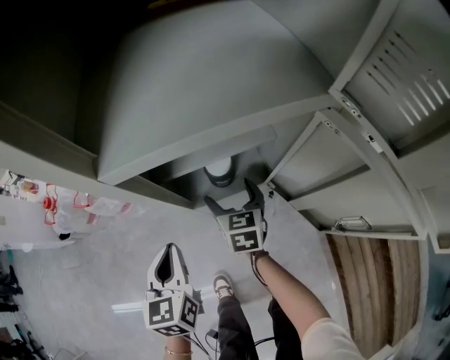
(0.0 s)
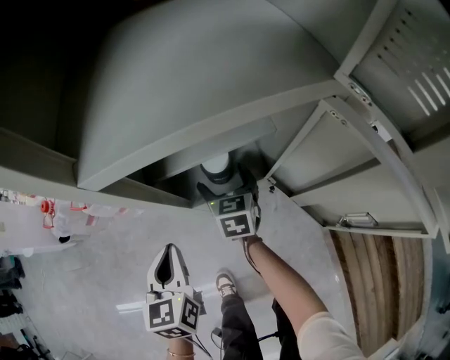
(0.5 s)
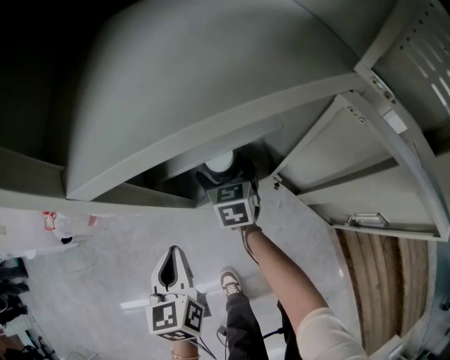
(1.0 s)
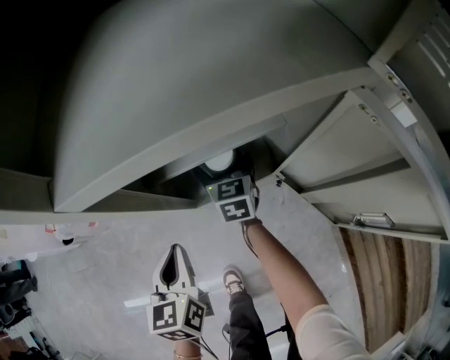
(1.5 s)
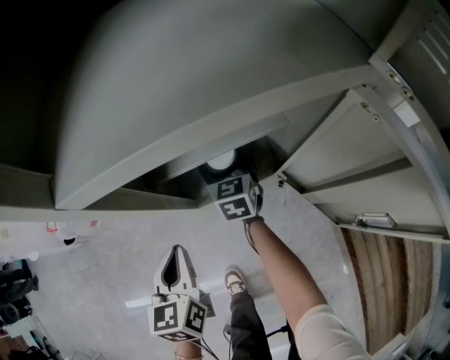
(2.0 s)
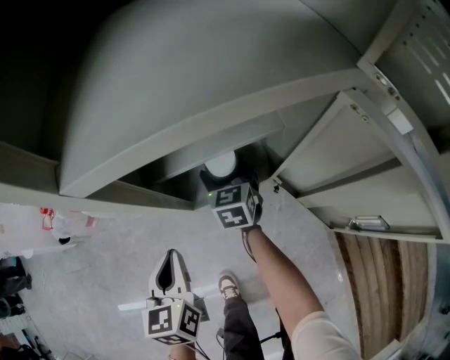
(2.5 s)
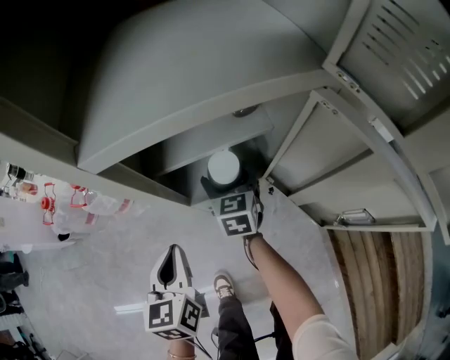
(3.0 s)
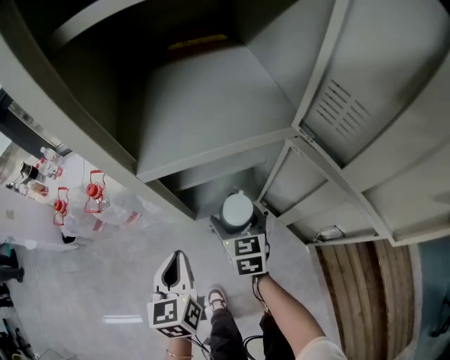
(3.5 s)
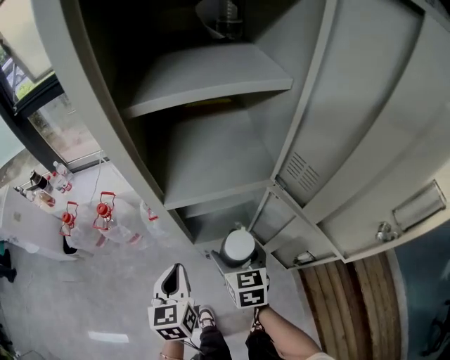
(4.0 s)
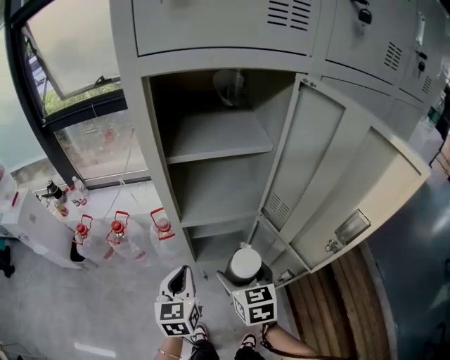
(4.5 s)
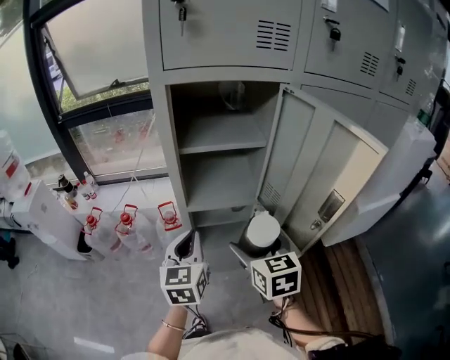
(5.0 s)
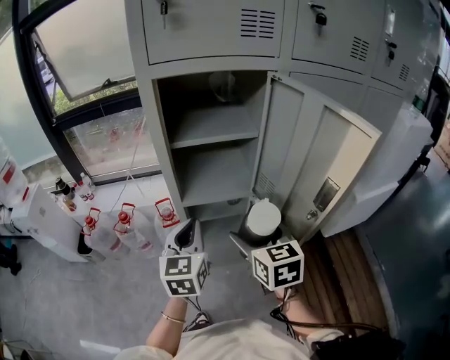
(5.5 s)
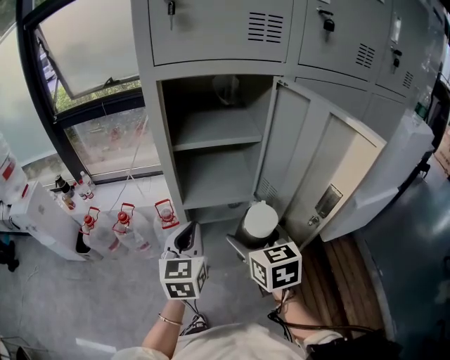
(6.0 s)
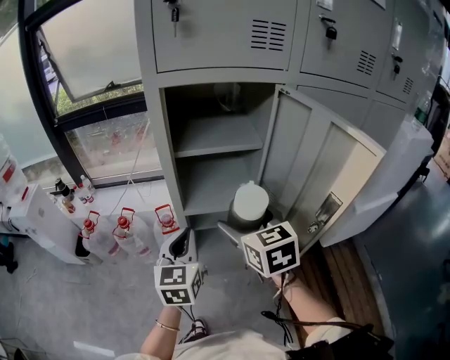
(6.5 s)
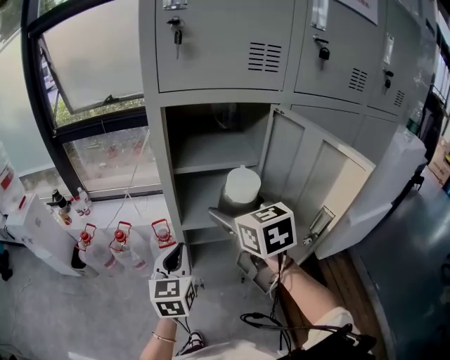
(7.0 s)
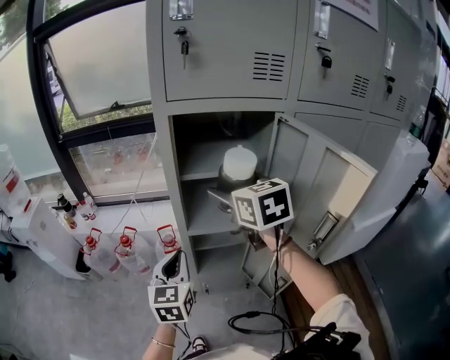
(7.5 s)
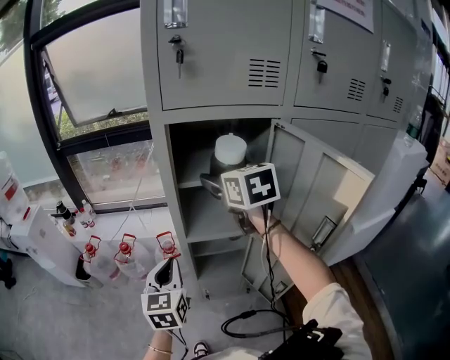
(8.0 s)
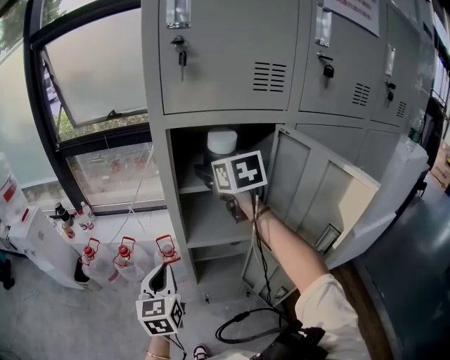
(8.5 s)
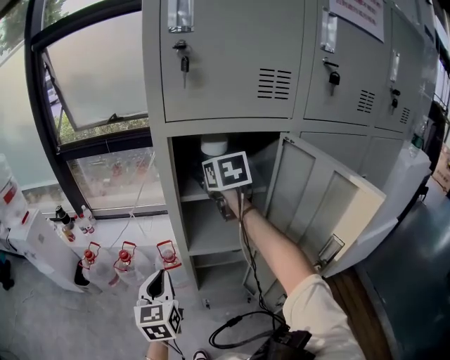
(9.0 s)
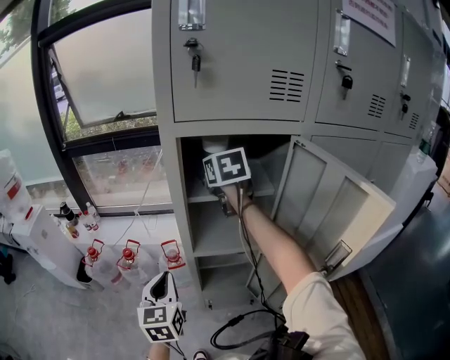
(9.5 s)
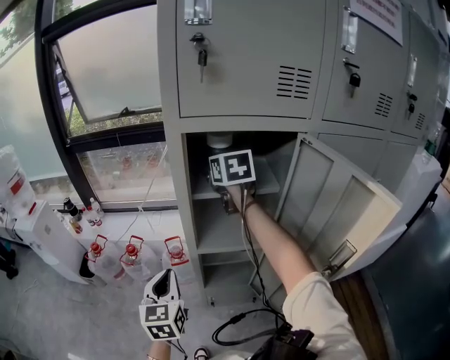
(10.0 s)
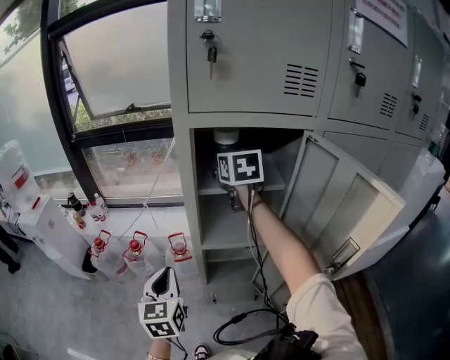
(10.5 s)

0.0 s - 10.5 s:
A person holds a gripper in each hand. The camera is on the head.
0.0 s - 2.0 s: The right gripper is displaced forward by some 10 cm.
2.0 s - 4.0 s: The right gripper travels upward and backward by approximately 30 cm. The left gripper shifts about 15 cm upward.
4.0 s - 6.5 s: Both grippers move upward, roughly 30 cm.
6.5 s - 8.5 s: The left gripper is displaced to the left by about 10 cm; the right gripper shifts approximately 25 cm forward and upward.
8.5 s - 10.5 s: The right gripper moves forward, some 5 cm.

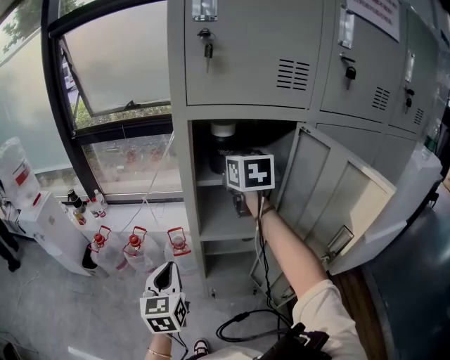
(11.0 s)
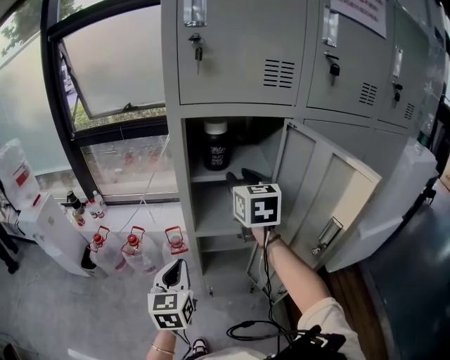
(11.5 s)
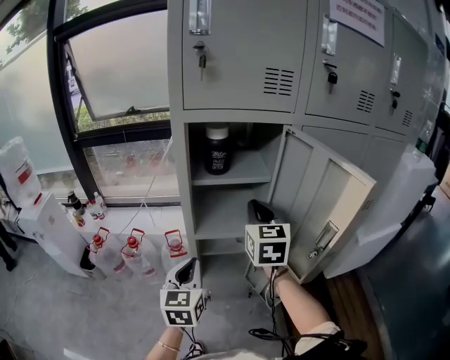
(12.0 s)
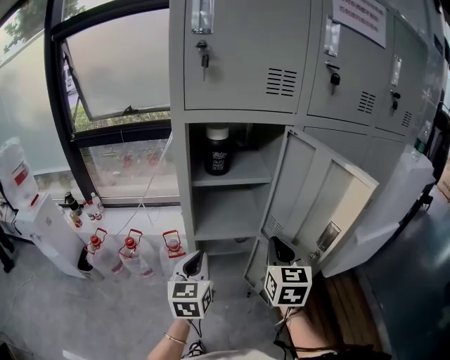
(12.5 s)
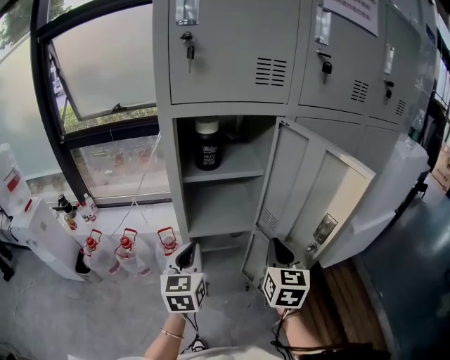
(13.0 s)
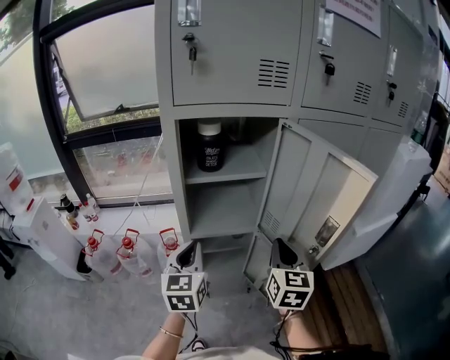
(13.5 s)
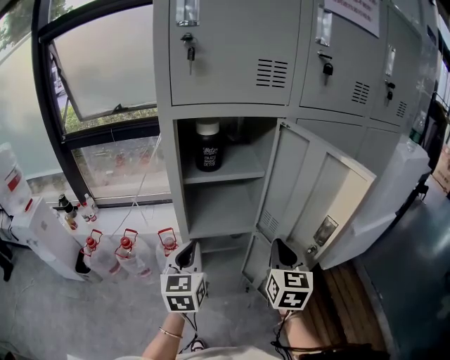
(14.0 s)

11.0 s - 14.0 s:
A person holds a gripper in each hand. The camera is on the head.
11.0 s - 12.5 s: The right gripper shifts roughly 30 cm backward, to the right and downward, and closes up; the left gripper shifts roughly 10 cm to the right.
12.5 s - 14.0 s: There are only small adjustments of the grippers.

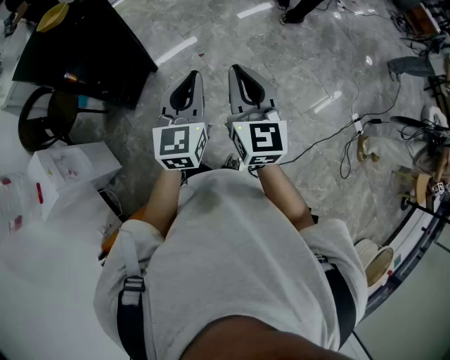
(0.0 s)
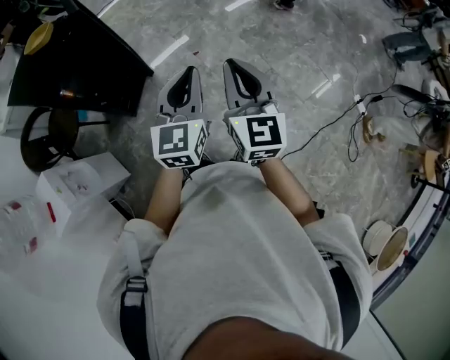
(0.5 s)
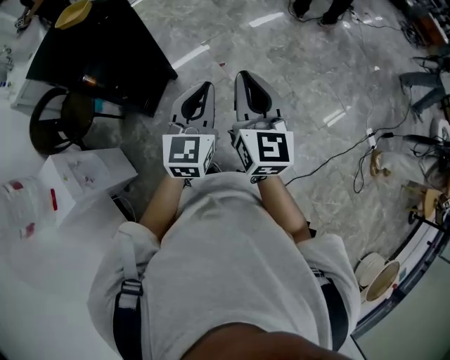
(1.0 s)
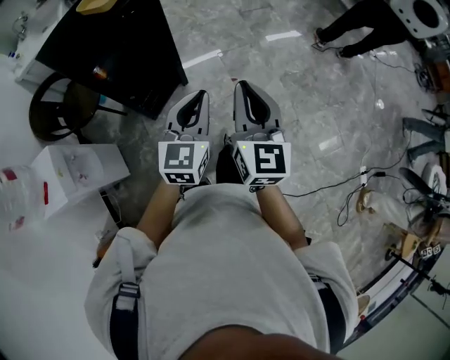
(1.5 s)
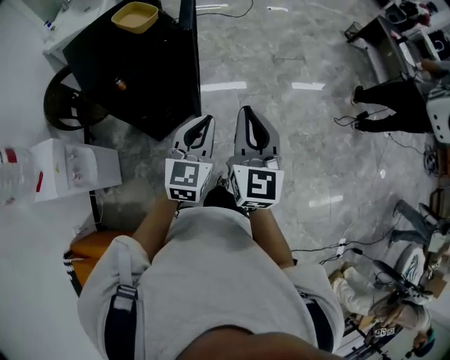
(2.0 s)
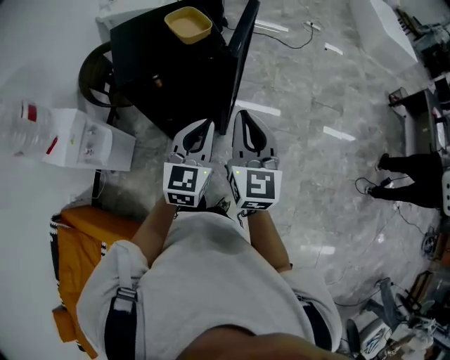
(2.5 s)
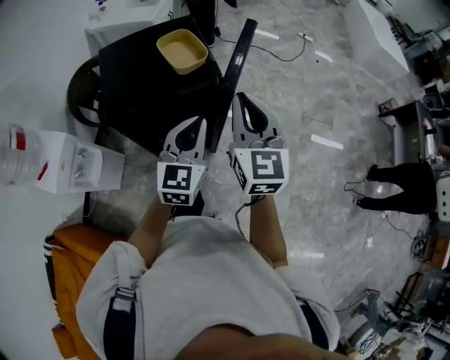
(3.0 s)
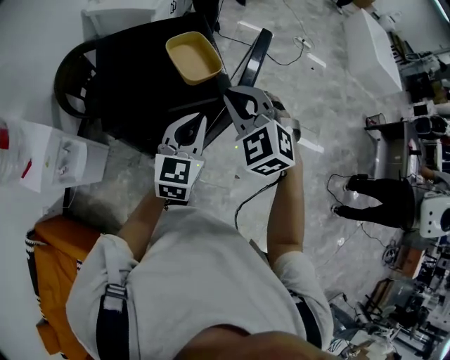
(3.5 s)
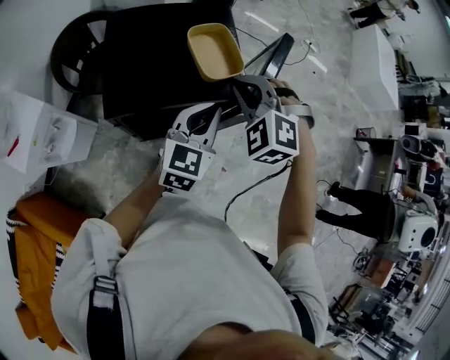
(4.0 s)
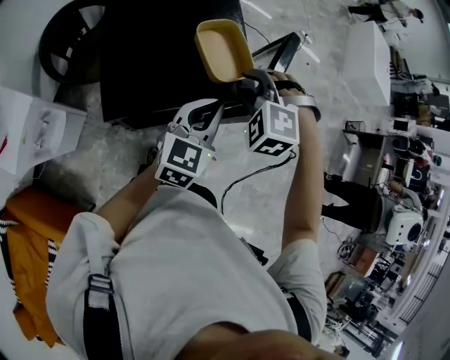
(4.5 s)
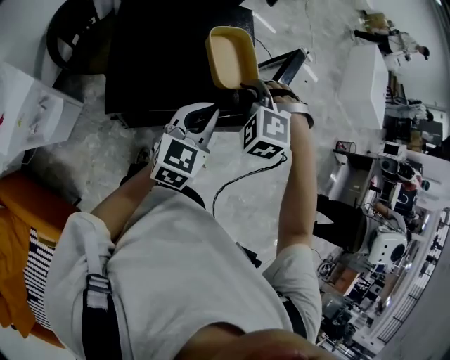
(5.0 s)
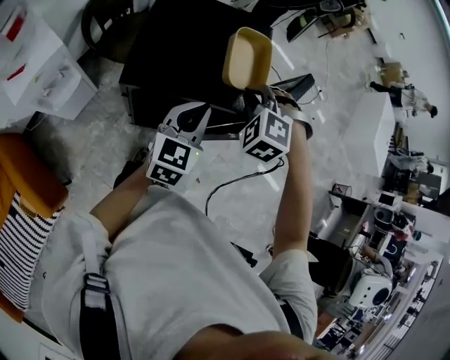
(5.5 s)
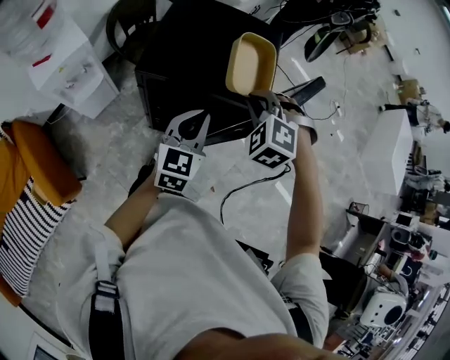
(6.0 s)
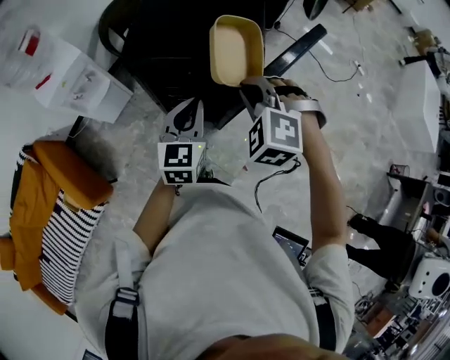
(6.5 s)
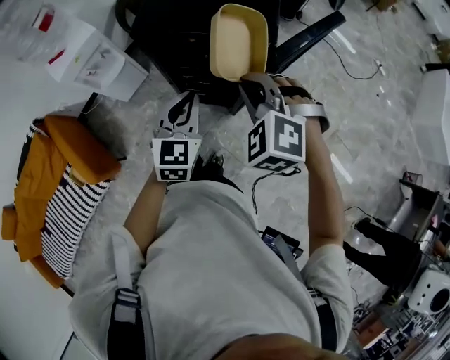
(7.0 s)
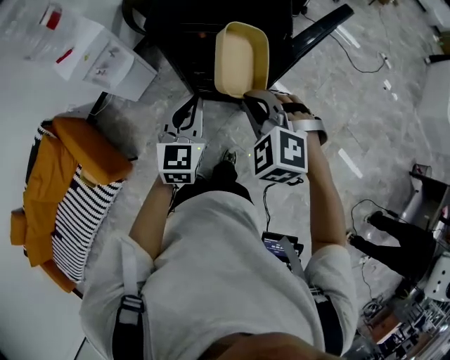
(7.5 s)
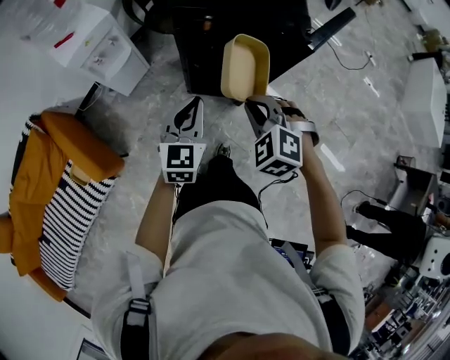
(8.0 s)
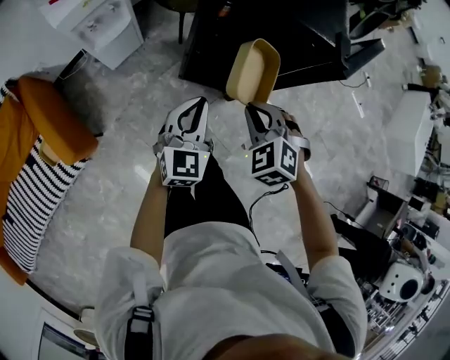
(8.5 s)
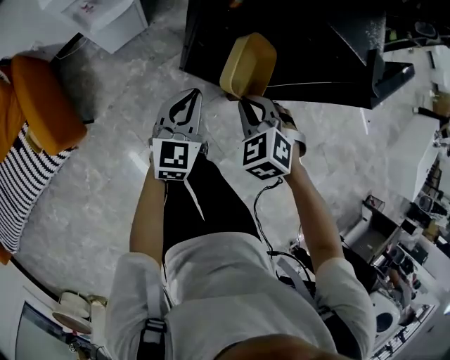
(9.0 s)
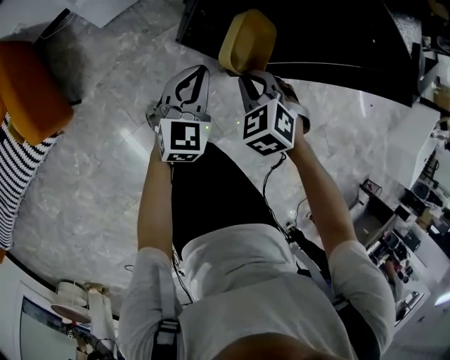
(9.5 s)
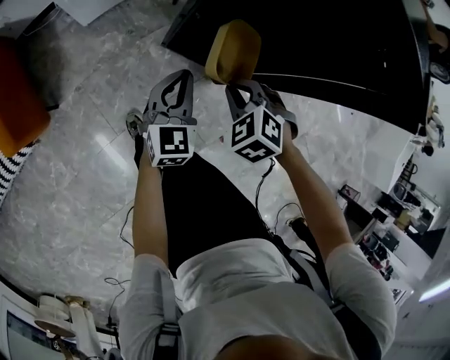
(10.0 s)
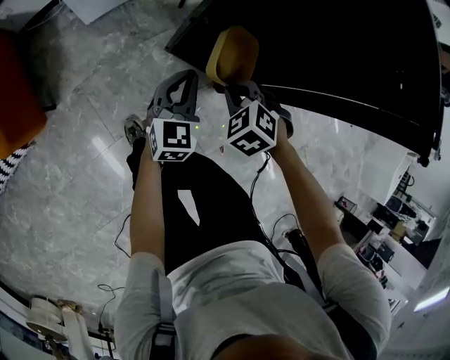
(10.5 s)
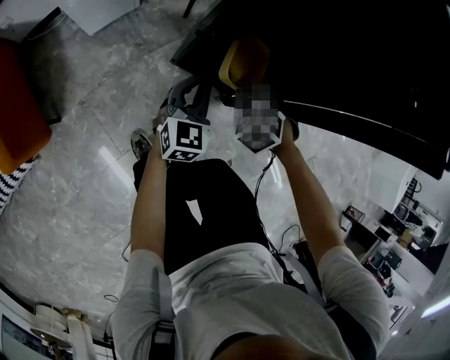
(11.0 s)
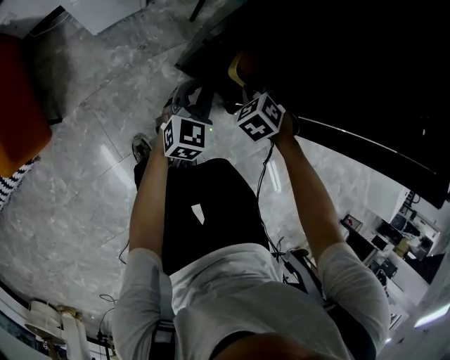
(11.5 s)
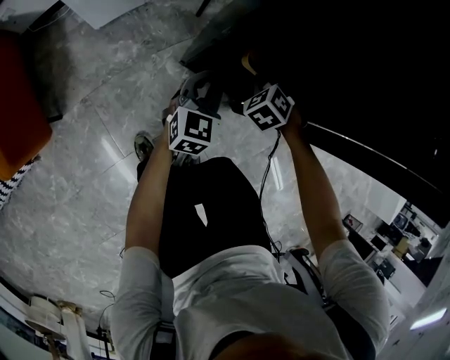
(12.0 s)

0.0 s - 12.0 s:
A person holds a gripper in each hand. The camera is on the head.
0.0 s - 2.0 s: Both grippers move forward and to the left, some 35 cm. The left gripper swivels roughly 20 degrees. The right gripper rotates roughly 20 degrees.
2.0 s - 4.0 s: The left gripper moves about 35 cm; the right gripper shifts by approximately 50 cm, and tilts its fingers roughly 40 degrees downward.
4.0 s - 6.0 s: The left gripper ends up roughly 10 cm from where it was, and rotates some 30 degrees. The right gripper moves some 5 cm, and opens, then closes once more.
6.0 s - 8.0 s: Both grippers move backward and to the left, some 25 cm.
8.0 s - 10.0 s: The grippers both shift downward by about 30 cm.
10.0 s - 12.0 s: Both grippers travel together downward and forward, about 20 cm.

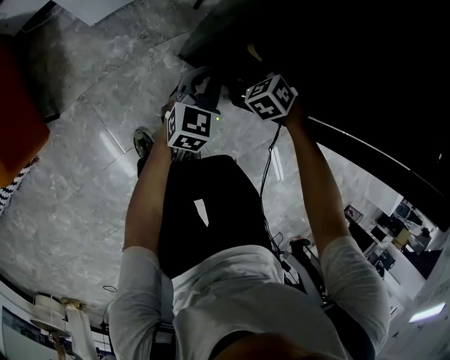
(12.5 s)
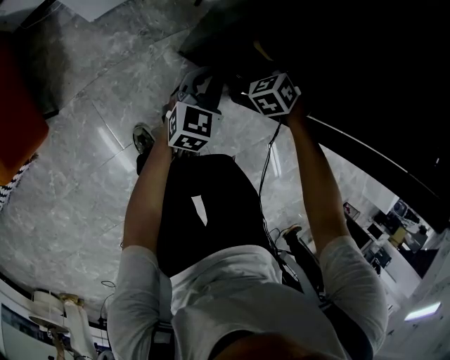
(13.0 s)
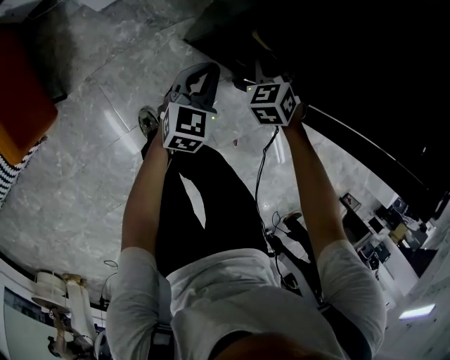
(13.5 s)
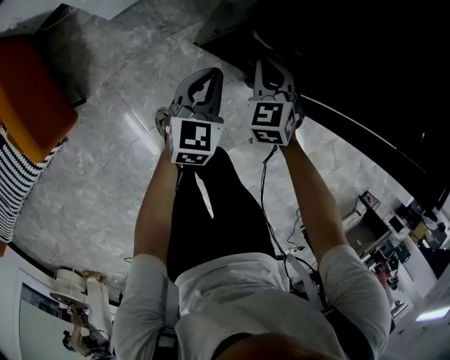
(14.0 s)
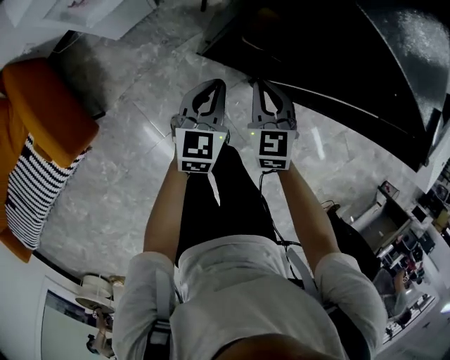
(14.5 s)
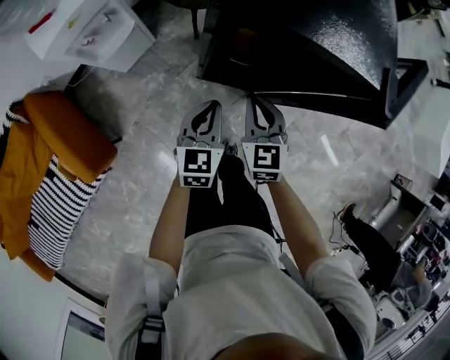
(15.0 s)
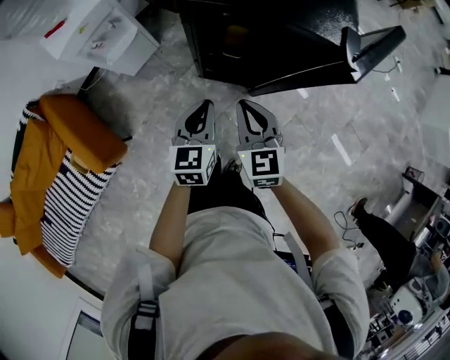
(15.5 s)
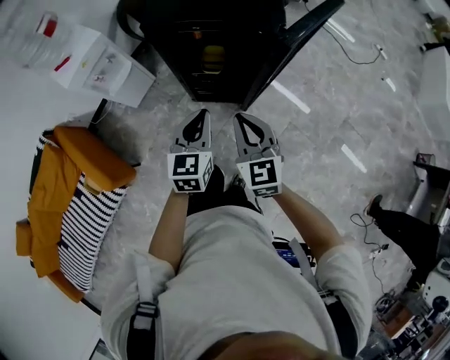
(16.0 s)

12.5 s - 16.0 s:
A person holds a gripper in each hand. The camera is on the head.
12.5 s - 14.5 s: The left gripper is displaced upward by approximately 20 cm, while the right gripper travels upward and backward by some 25 cm, rolls clockwise, seen from behind, by some 40 degrees, and opens, then closes again.
14.5 s - 16.0 s: The right gripper travels upward and backward by roughly 35 cm, and changes its angle by some 20 degrees. The left gripper shifts roughly 30 cm upward, backward and to the right.
